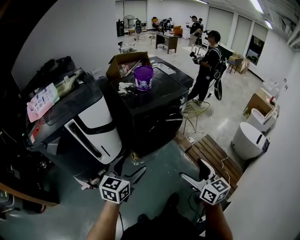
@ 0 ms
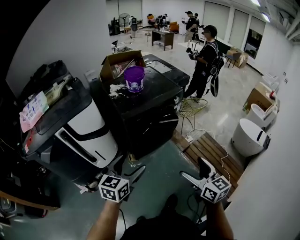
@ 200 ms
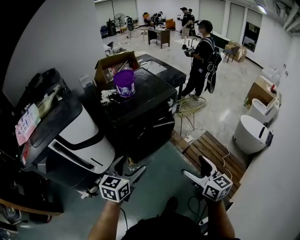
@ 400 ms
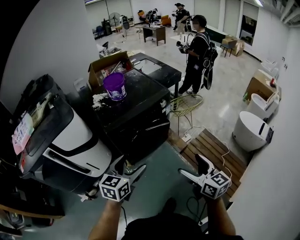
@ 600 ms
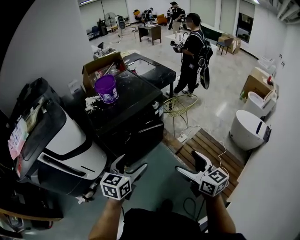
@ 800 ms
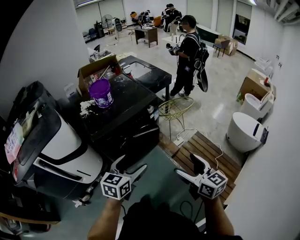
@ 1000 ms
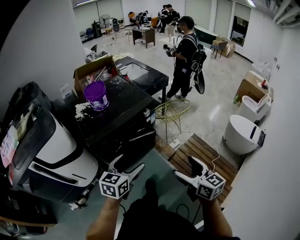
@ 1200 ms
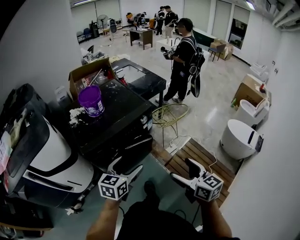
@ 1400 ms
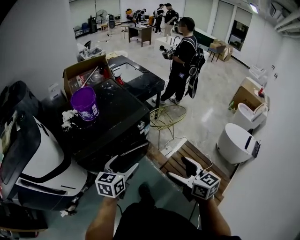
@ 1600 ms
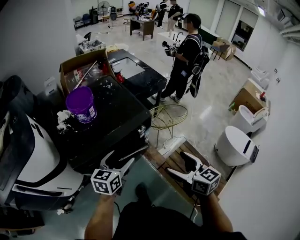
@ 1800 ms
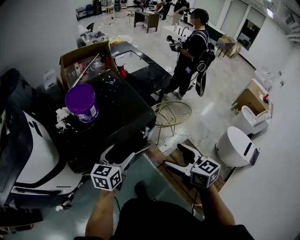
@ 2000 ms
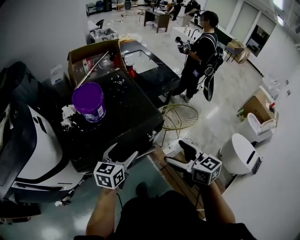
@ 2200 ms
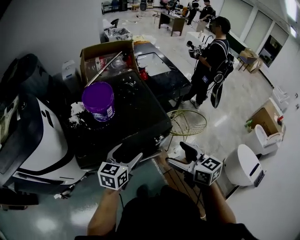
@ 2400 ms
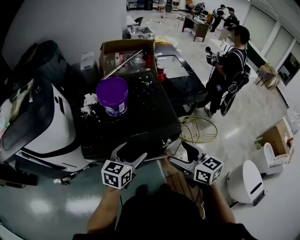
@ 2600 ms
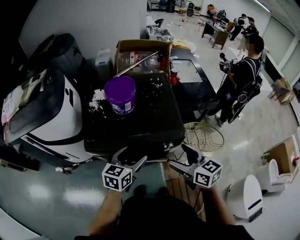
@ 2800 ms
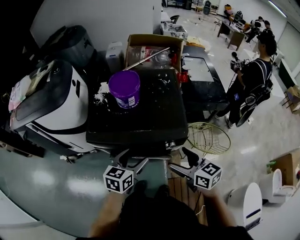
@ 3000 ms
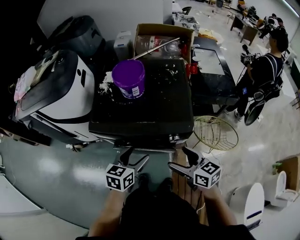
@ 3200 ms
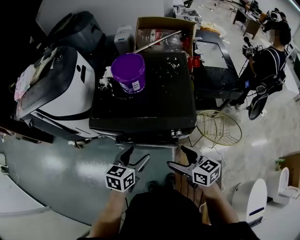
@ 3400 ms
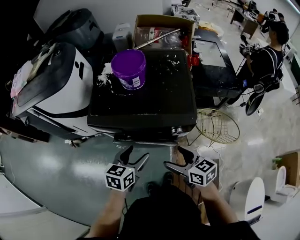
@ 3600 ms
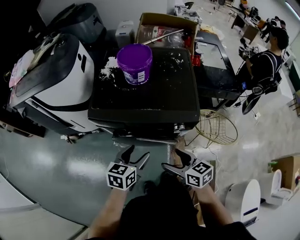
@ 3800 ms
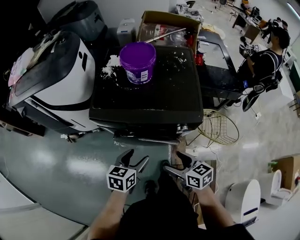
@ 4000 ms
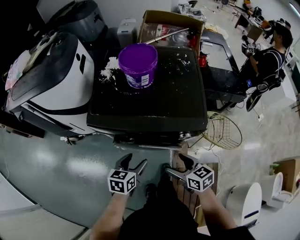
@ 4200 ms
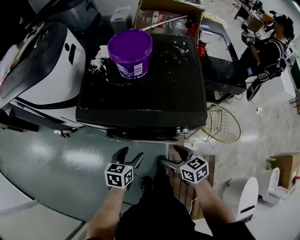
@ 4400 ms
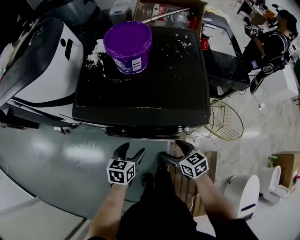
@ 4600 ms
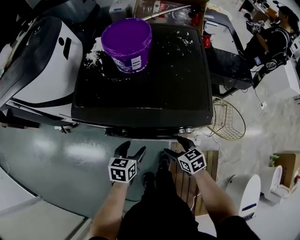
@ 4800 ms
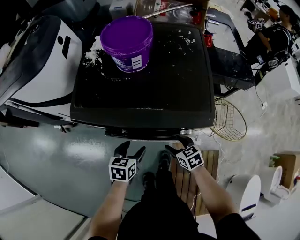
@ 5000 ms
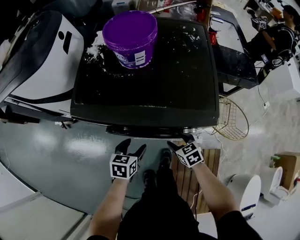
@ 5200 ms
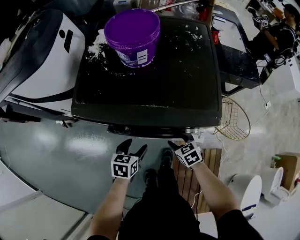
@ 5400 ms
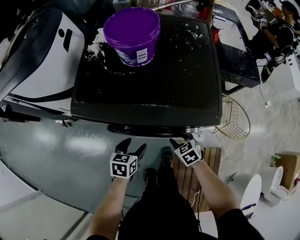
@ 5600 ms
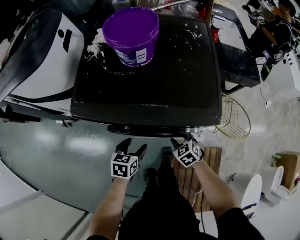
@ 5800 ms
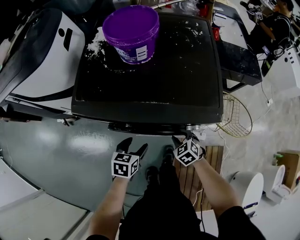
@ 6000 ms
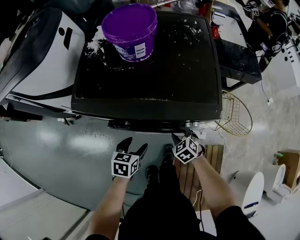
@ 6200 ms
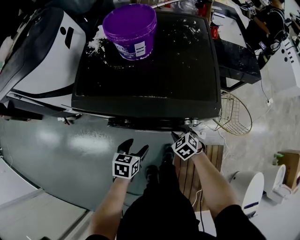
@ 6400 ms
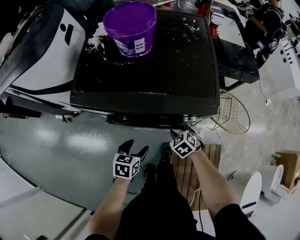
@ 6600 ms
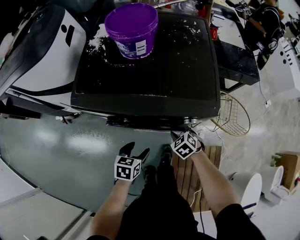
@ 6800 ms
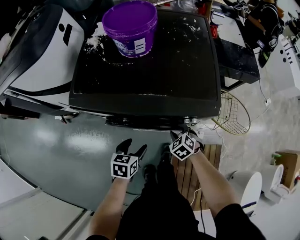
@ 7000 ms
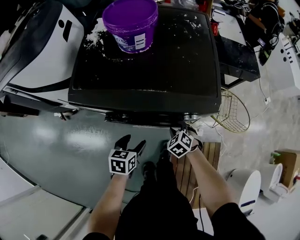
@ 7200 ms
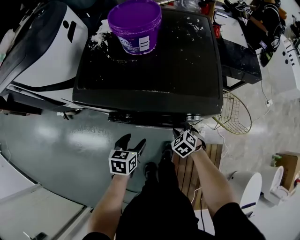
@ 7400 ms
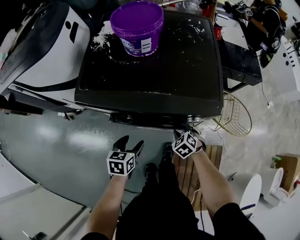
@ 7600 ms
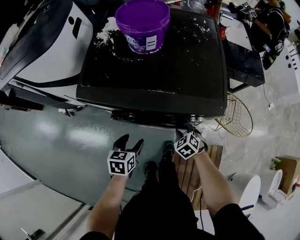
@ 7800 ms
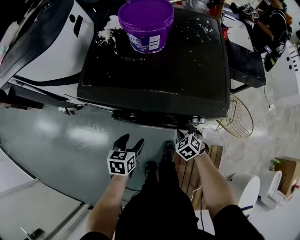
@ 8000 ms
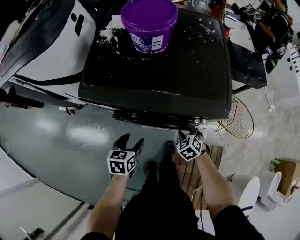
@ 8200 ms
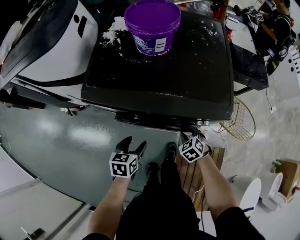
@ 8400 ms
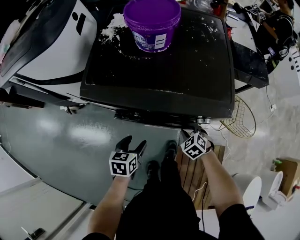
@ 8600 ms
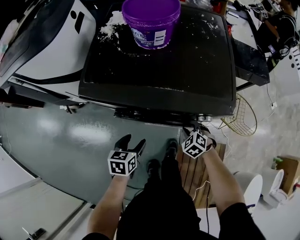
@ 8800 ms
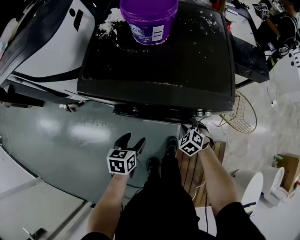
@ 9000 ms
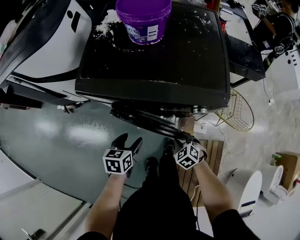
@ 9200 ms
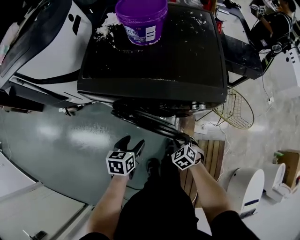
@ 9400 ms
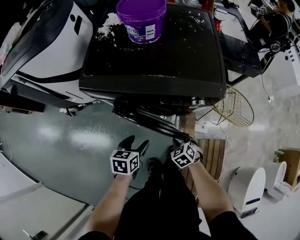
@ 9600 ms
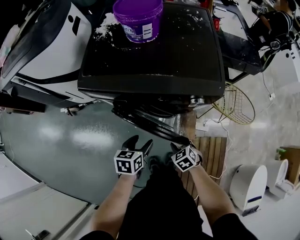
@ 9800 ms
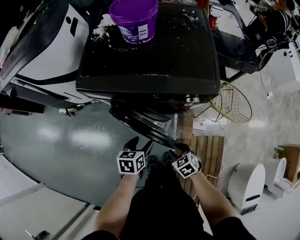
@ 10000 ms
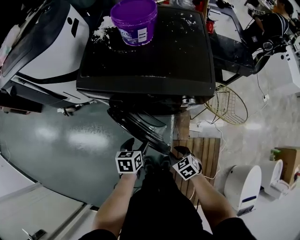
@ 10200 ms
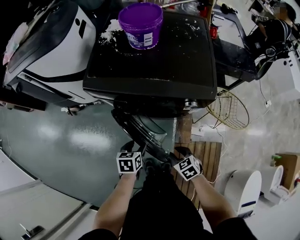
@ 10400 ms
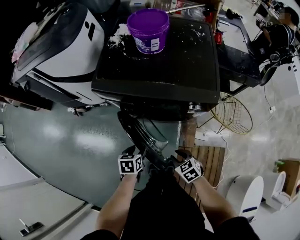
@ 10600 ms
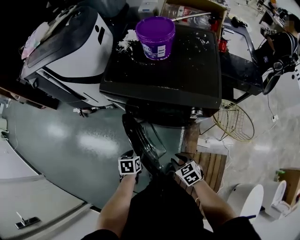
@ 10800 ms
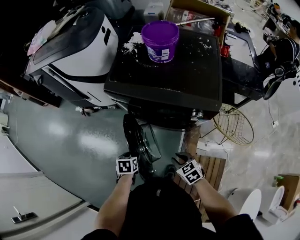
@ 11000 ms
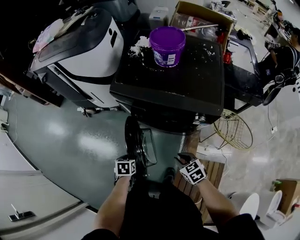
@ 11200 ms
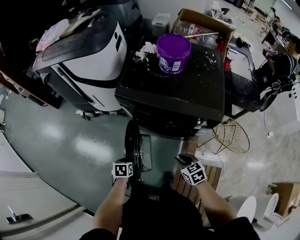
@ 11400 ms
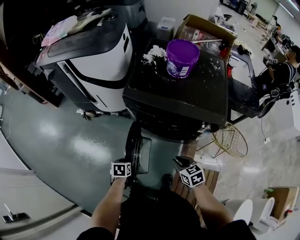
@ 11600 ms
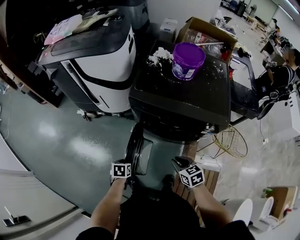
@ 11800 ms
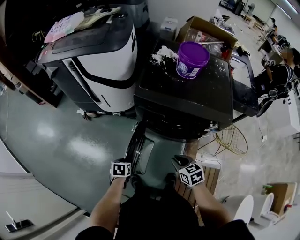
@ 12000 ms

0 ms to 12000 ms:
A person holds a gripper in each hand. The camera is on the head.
0 ms to 1600 ms: Both grippers move forward and to the right, some 40 cm.
1600 ms to 3000 ms: The right gripper moves roughly 25 cm, and changes its angle by roughly 40 degrees; the left gripper moves approximately 15 cm, and changes its angle by about 30 degrees.
3000 ms to 4400 ms: Both grippers move downward, some 20 cm.
4400 ms to 6000 ms: The left gripper travels downward by roughly 5 cm. Meanwhile the right gripper travels downward by roughly 15 cm, swivels some 40 degrees, and closes up.
6000 ms to 9000 ms: The grippers stay close to where they were, moving slightly.
9000 ms to 10400 ms: The right gripper heads backward, covering about 20 cm, and rotates roughly 30 degrees. Meanwhile the left gripper heads backward, covering some 5 cm.
10400 ms to 12000 ms: The right gripper shifts roughly 20 cm to the left, upward and forward; the left gripper shifts some 25 cm to the left.

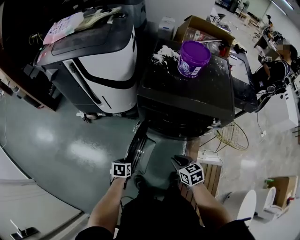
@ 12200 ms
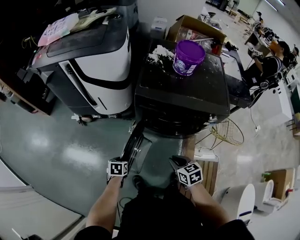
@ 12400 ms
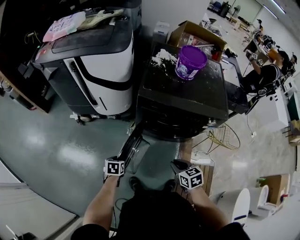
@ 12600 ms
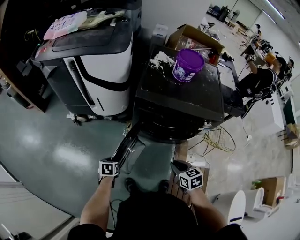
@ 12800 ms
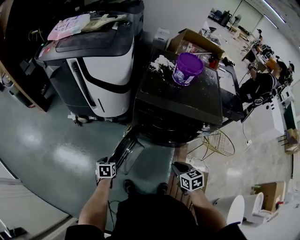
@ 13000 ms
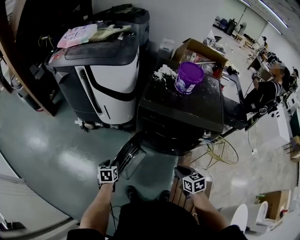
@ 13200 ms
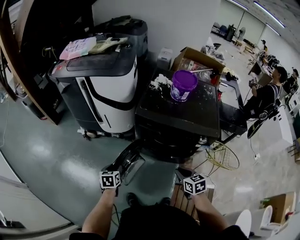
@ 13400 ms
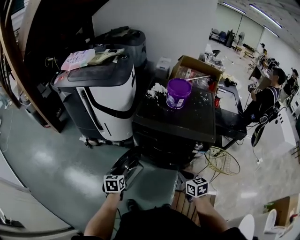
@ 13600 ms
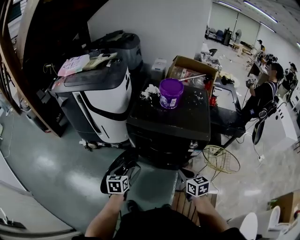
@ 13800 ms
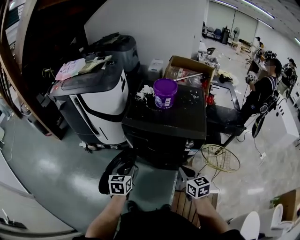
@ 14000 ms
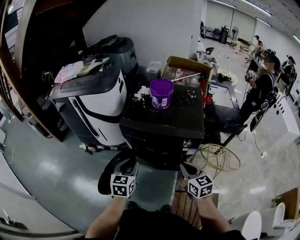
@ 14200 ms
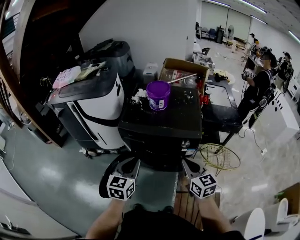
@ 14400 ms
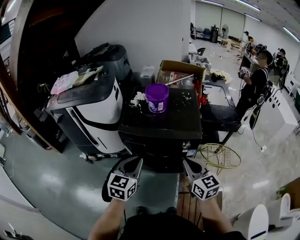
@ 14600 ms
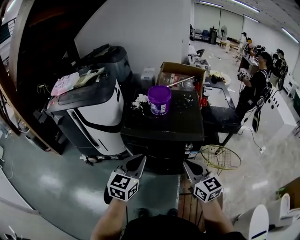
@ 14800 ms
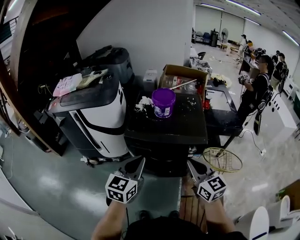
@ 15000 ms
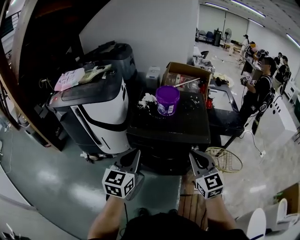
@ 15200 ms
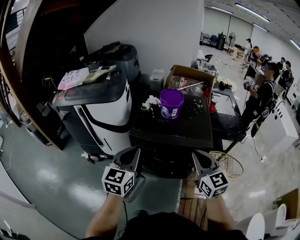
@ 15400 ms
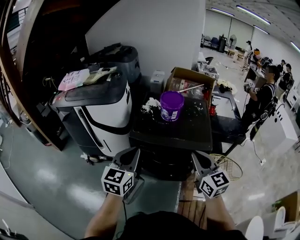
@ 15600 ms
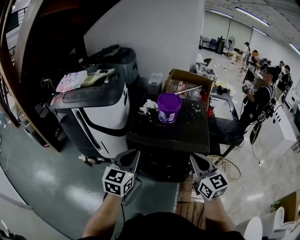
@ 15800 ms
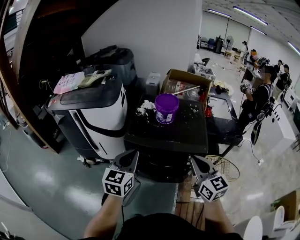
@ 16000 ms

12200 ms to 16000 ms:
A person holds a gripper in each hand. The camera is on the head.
12200 ms to 13400 ms: The left gripper travels upward by about 10 cm, and turns by some 20 degrees. Meanwhile the right gripper is displaced to the right and upward by approximately 10 cm.
13400 ms to 14800 ms: The right gripper heads upward, covering about 20 cm, and tilts its fingers approximately 30 degrees upward, while the left gripper moves upward and to the right, roughly 40 cm, points its fingers roughly 40 degrees further upward, and closes its fingers.
14800 ms to 16000 ms: The right gripper shifts roughly 5 cm forward. The left gripper travels to the left and forward by some 10 cm.

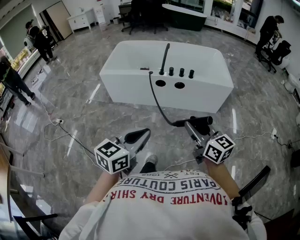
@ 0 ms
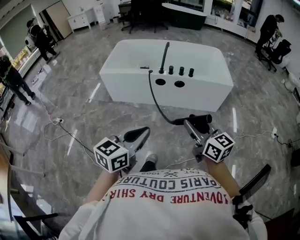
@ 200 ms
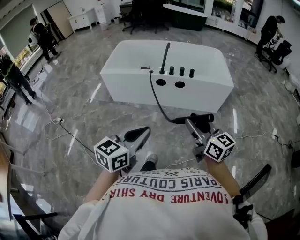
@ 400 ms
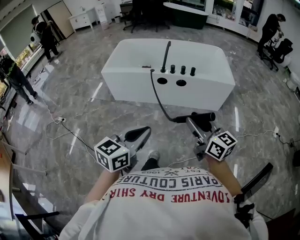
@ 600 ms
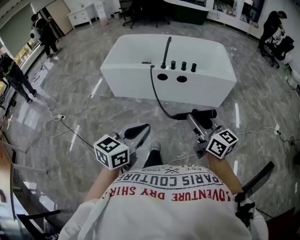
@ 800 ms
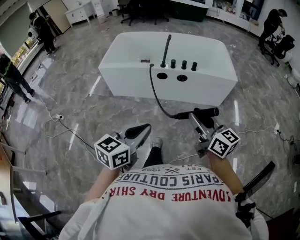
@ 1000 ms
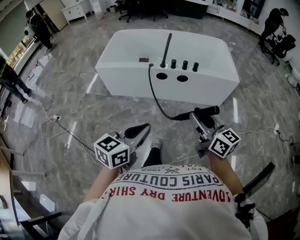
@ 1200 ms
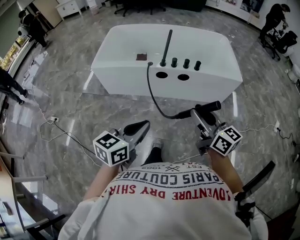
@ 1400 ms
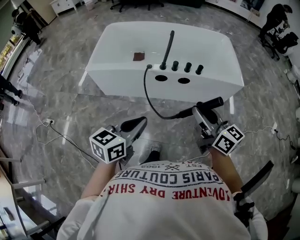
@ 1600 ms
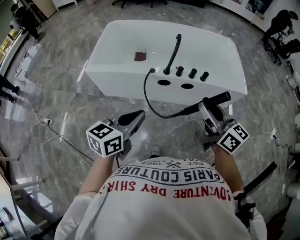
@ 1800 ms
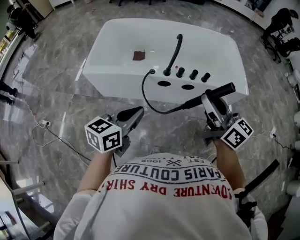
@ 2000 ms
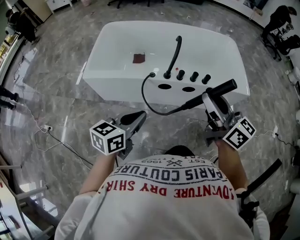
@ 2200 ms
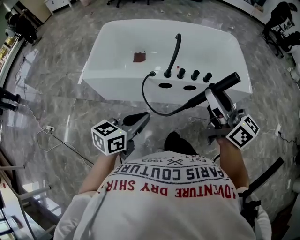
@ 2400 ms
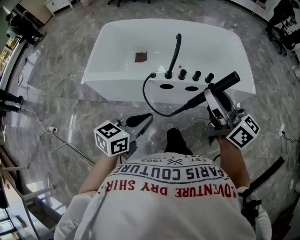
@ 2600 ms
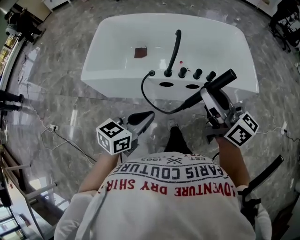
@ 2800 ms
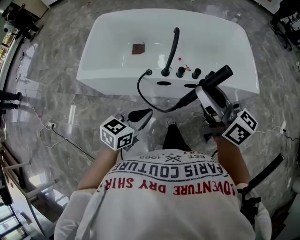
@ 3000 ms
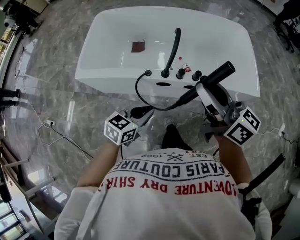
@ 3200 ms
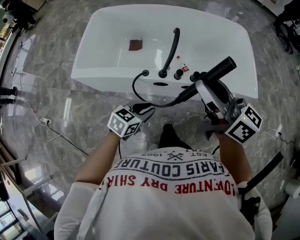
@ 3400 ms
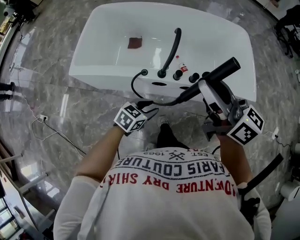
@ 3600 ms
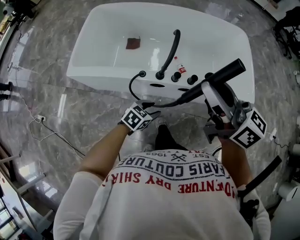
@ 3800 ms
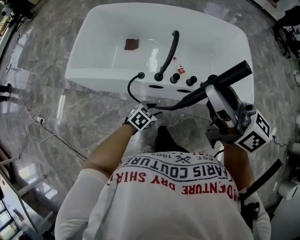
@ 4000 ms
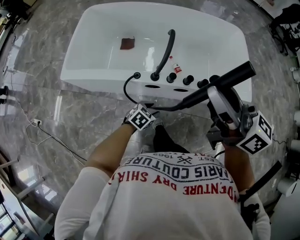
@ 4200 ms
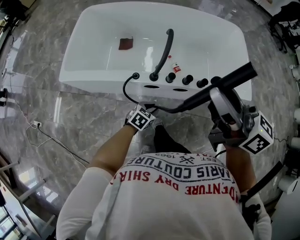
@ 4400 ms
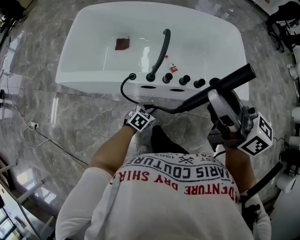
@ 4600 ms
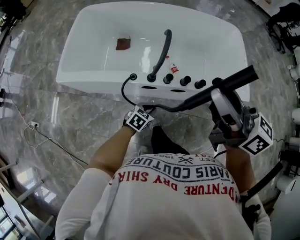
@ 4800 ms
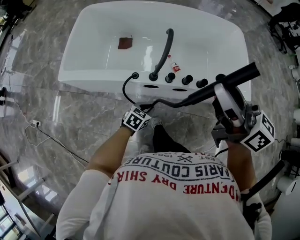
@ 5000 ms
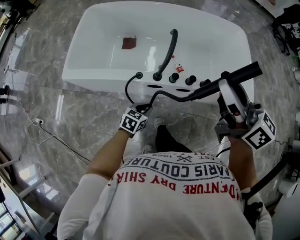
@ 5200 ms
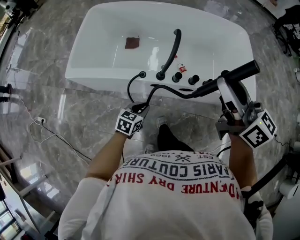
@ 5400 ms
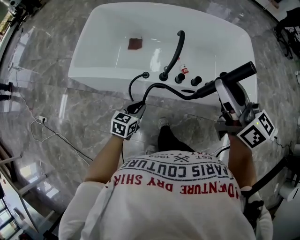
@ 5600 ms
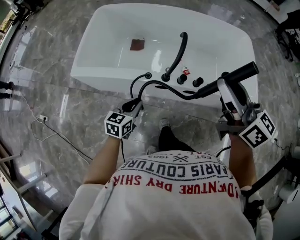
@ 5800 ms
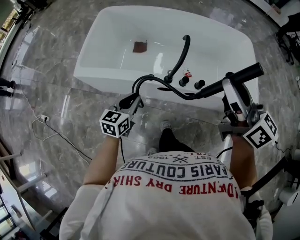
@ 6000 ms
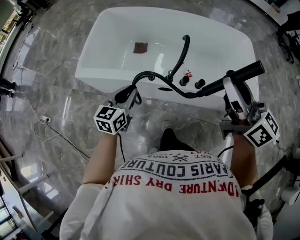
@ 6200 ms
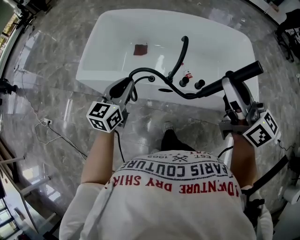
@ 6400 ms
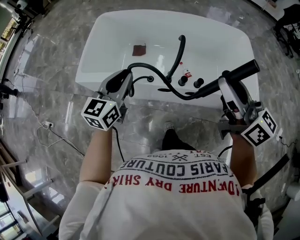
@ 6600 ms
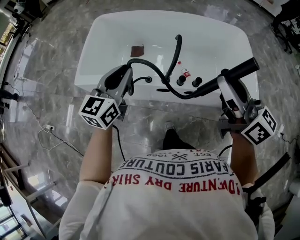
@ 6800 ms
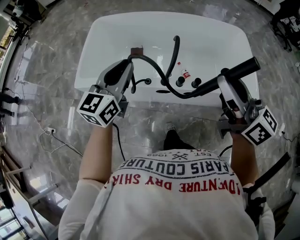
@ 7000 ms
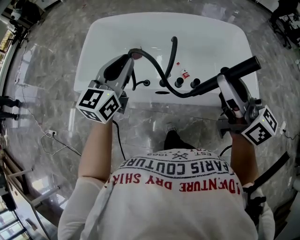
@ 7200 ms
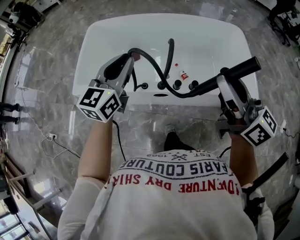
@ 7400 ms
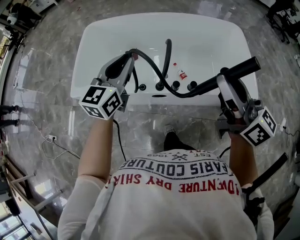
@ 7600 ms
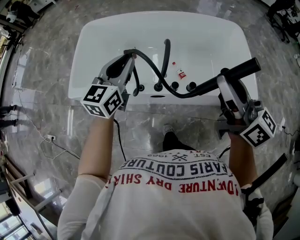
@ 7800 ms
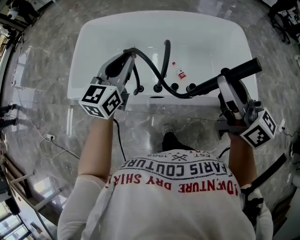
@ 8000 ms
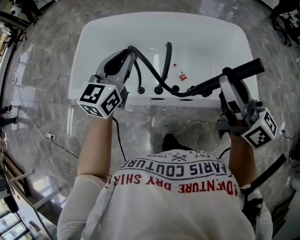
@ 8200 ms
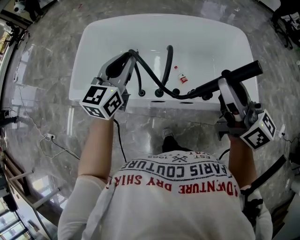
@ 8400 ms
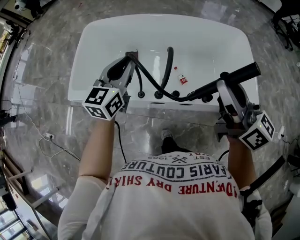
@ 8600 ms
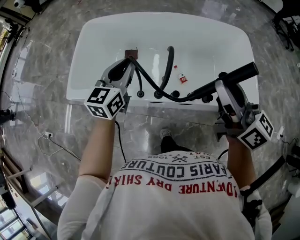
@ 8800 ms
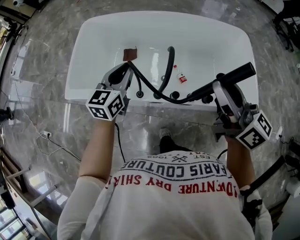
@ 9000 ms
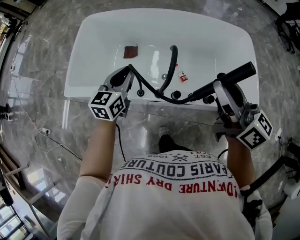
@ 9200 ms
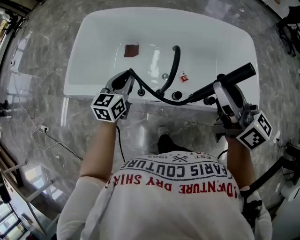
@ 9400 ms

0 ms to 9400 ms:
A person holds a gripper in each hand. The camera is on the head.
0 ms to 1600 ms: Both grippers move forward, approximately 20 cm.
1600 ms to 3200 ms: The left gripper shifts roughly 25 cm forward and downward; the right gripper moves forward, roughly 25 cm.
3200 ms to 4800 ms: The right gripper shifts by about 5 cm; the left gripper goes approximately 20 cm downward, and opens and closes again.
4800 ms to 6200 ms: The left gripper travels upward and to the left by roughly 30 cm, and changes its angle by roughly 40 degrees.
6200 ms to 7800 ms: The left gripper heads forward, upward and to the right, covering some 20 cm, while the right gripper is displaced to the right by about 5 cm.
7800 ms to 9400 ms: The right gripper moves forward, some 10 cm. The left gripper shifts roughly 15 cm downward.
